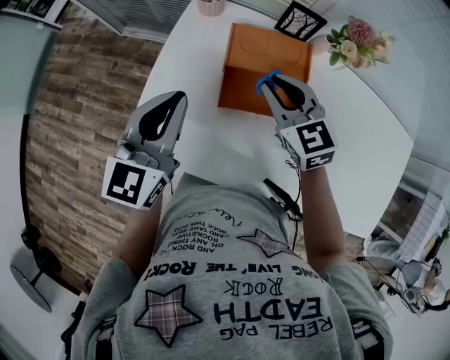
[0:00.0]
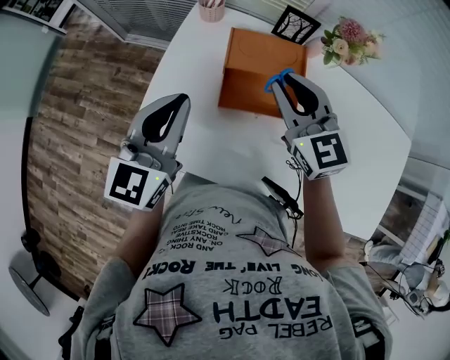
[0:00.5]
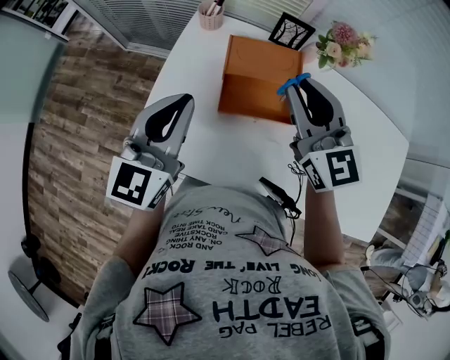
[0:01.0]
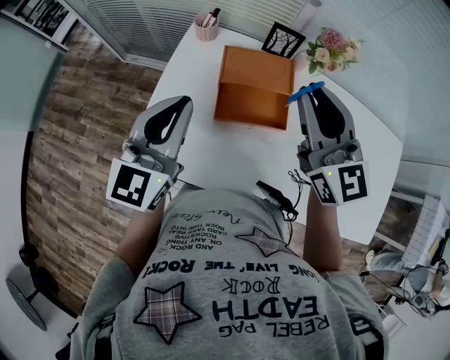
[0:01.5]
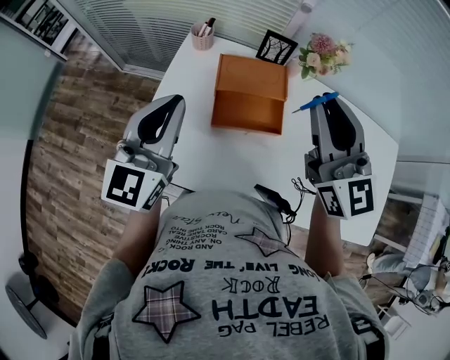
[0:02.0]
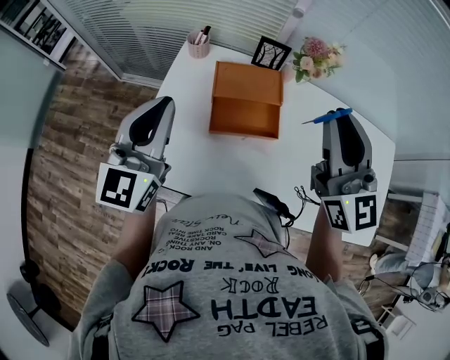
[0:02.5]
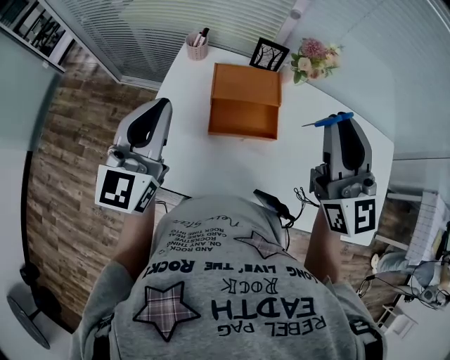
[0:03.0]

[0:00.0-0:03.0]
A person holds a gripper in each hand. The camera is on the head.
0:00.0 to 0:01.5: The left gripper goes approximately 5 cm upward. Meanwhile the right gripper is displaced upward by about 20 cm, and turns by about 30 degrees.
0:01.5 to 0:03.0: The right gripper moves to the right and upward, approximately 10 cm.

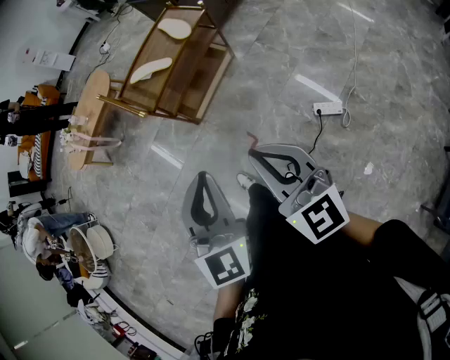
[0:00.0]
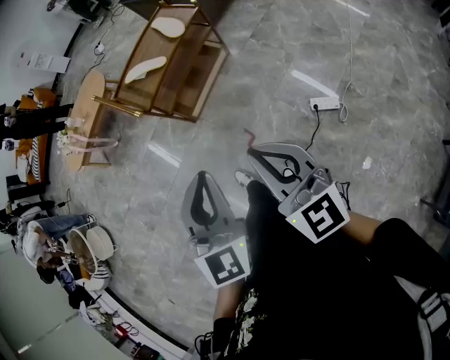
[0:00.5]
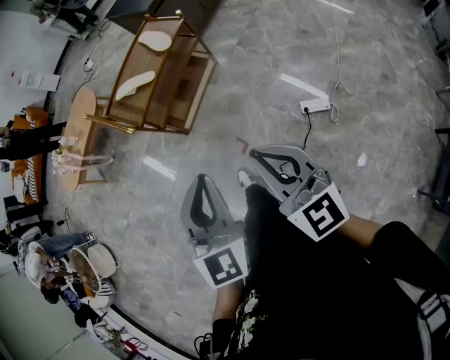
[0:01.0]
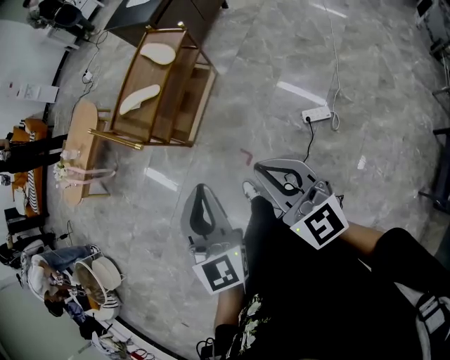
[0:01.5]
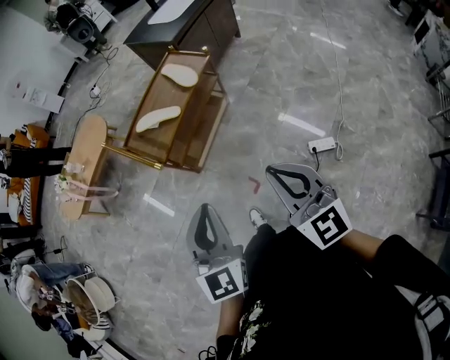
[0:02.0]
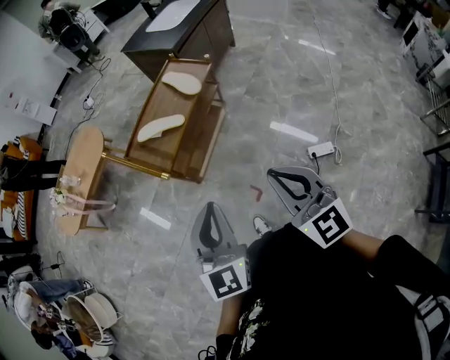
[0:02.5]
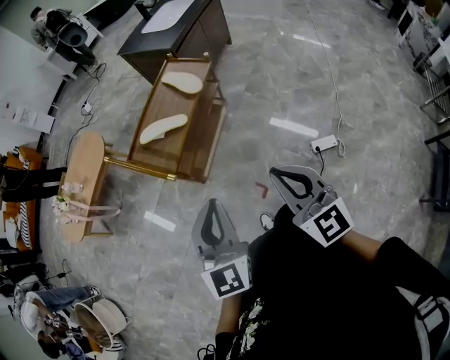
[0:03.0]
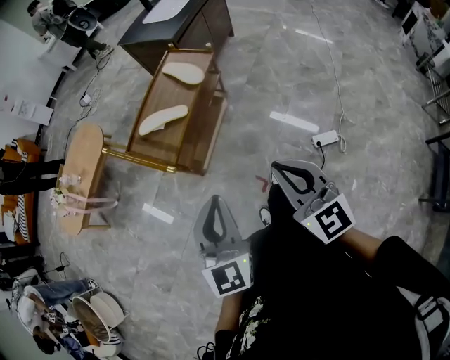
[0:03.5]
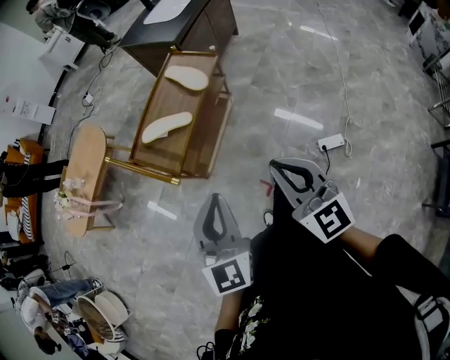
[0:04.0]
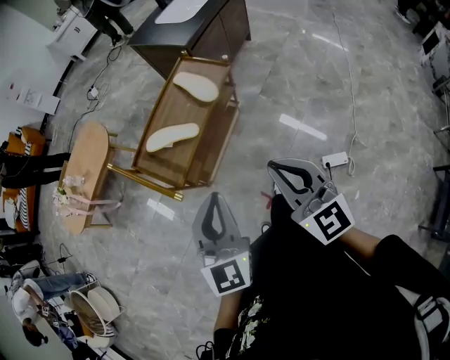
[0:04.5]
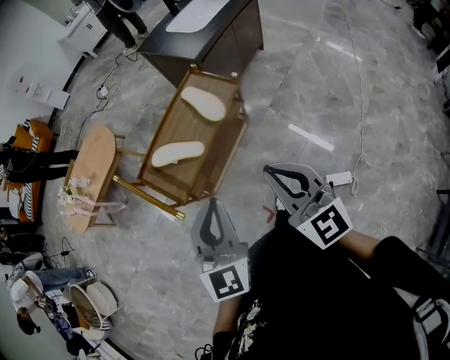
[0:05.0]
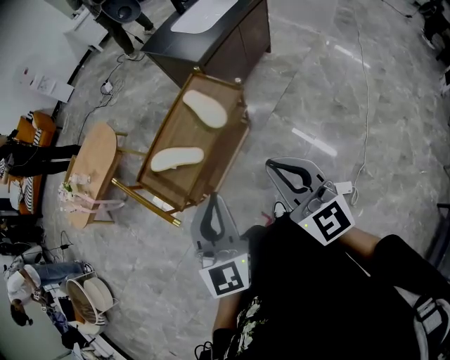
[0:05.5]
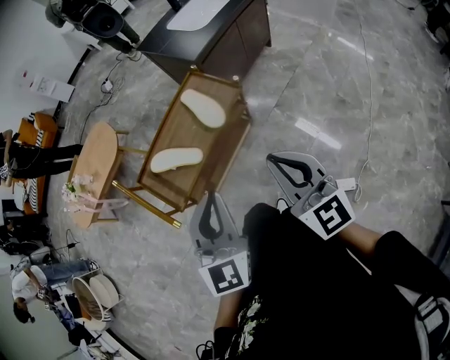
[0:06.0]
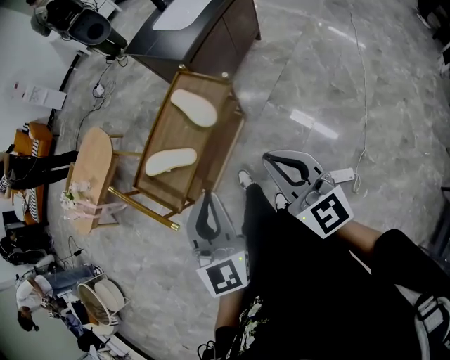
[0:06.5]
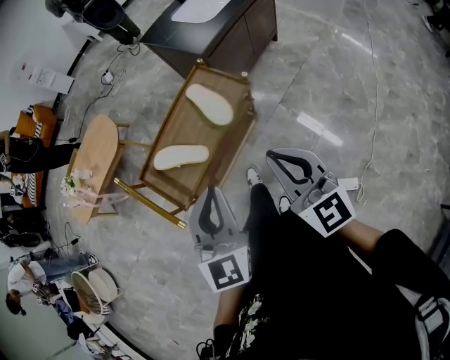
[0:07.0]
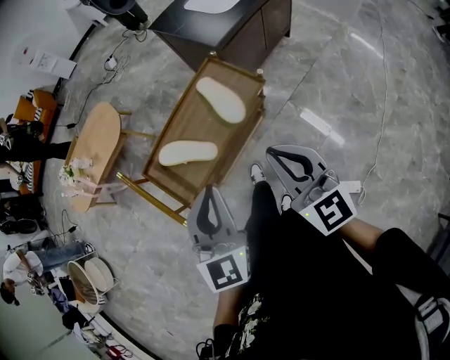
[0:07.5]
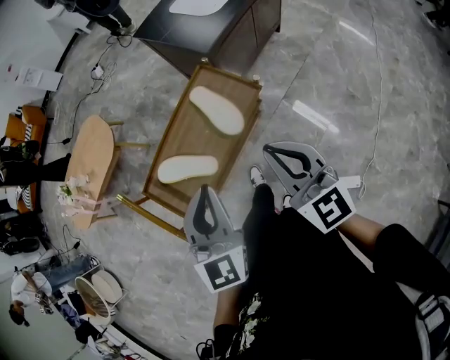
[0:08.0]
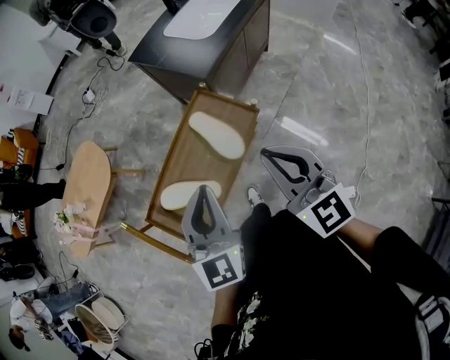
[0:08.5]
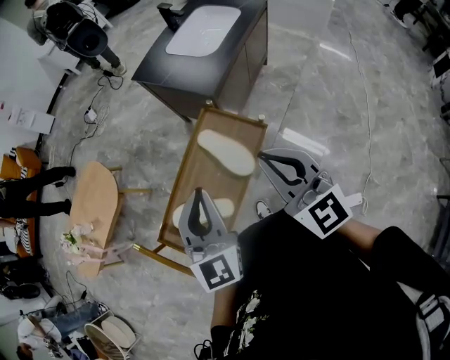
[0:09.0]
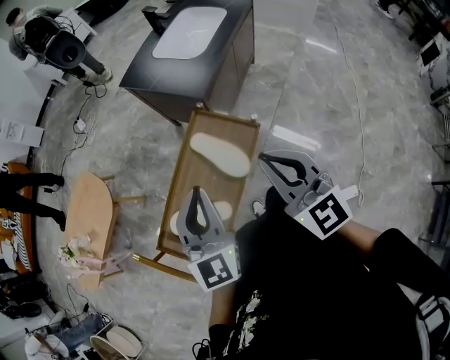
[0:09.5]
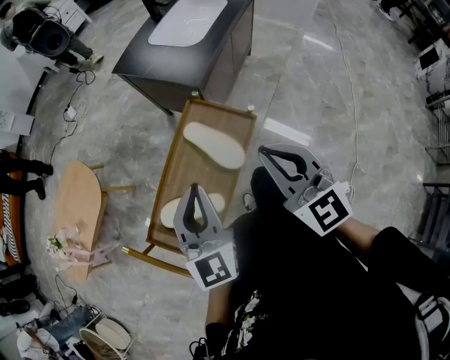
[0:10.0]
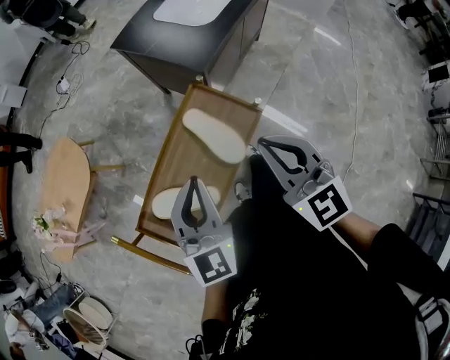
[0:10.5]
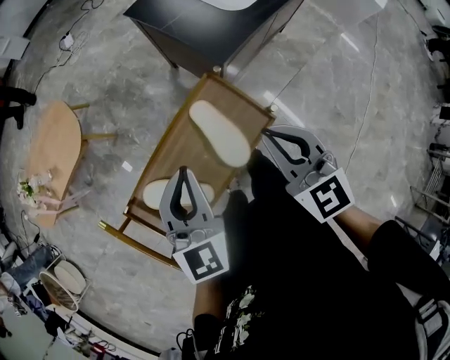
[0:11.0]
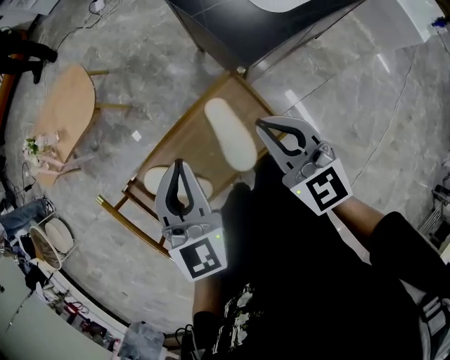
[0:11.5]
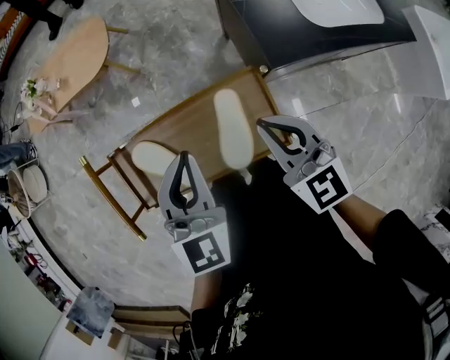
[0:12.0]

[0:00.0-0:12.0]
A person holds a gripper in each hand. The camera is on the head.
0:00.0 to 0:02.0: The left gripper is displaced forward and to the left by approximately 15 cm. The right gripper shifts roughly 10 cm forward.
0:02.0 to 0:04.0: The two grippers go some 10 cm forward.
0:04.0 to 0:06.0: The two grippers go about 25 cm forward and to the right.
0:06.0 to 0:08.0: The grippers both shift forward by some 15 cm.
0:08.0 to 0:10.0: Both grippers travel together forward, some 10 cm.
0:10.0 to 0:12.0: The left gripper moves approximately 10 cm, and rotates approximately 40 degrees; the right gripper changes place by about 20 cm, and changes its angle by about 50 degrees.

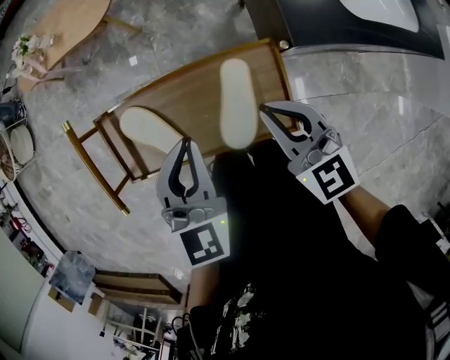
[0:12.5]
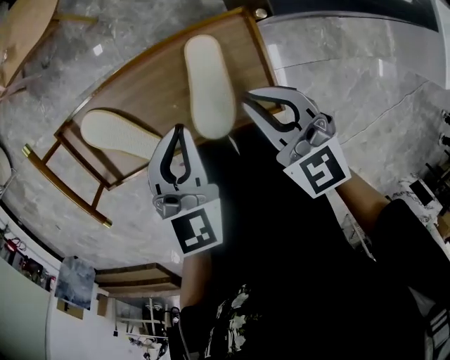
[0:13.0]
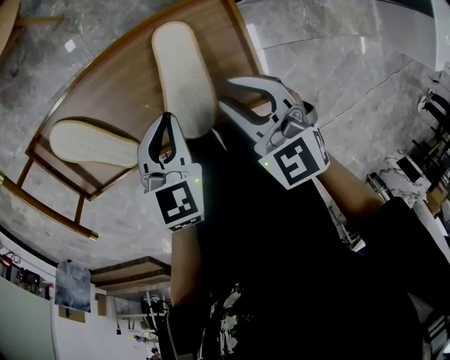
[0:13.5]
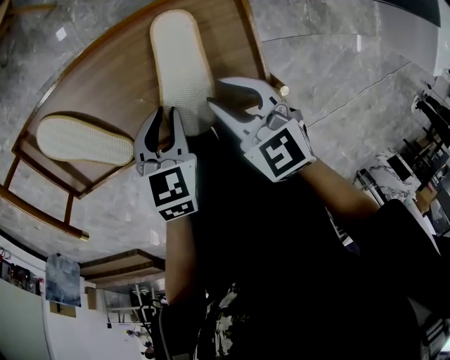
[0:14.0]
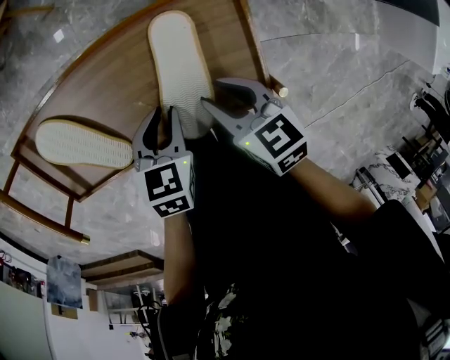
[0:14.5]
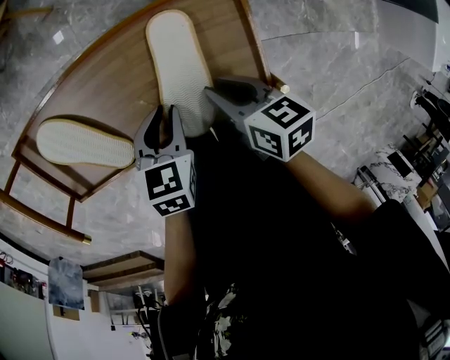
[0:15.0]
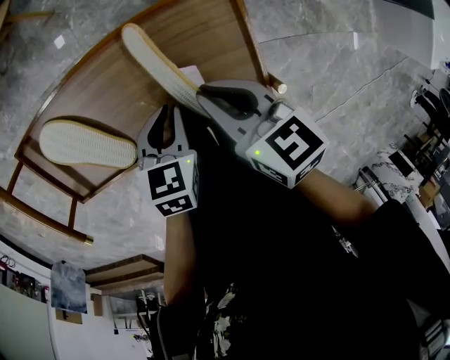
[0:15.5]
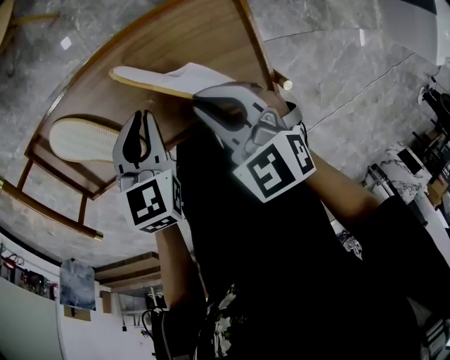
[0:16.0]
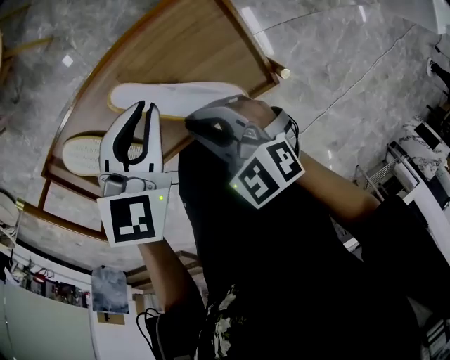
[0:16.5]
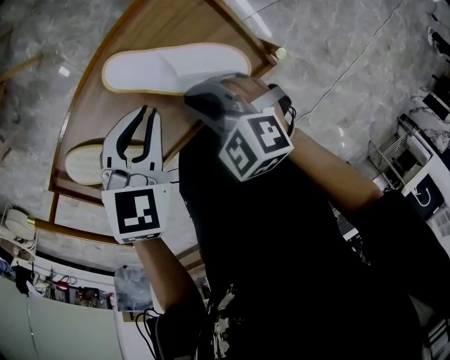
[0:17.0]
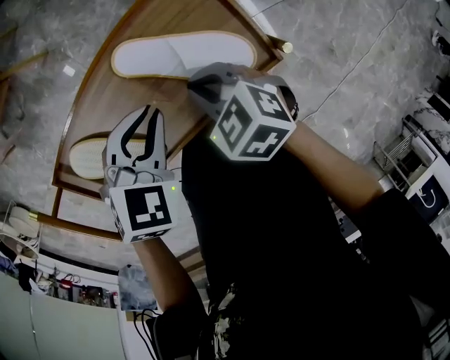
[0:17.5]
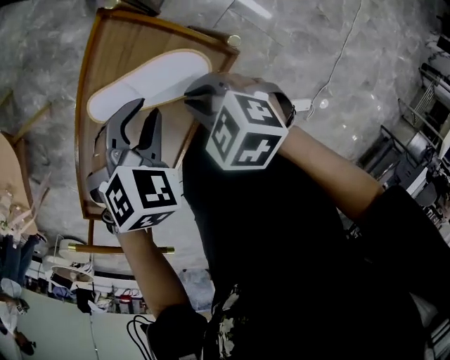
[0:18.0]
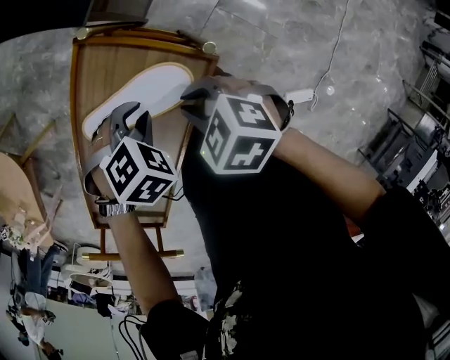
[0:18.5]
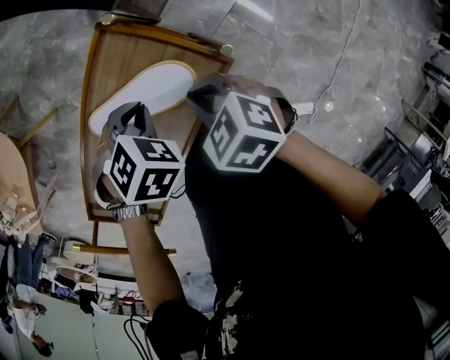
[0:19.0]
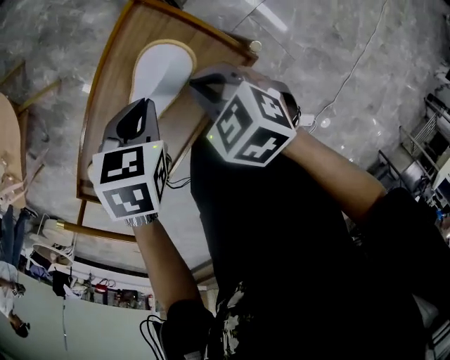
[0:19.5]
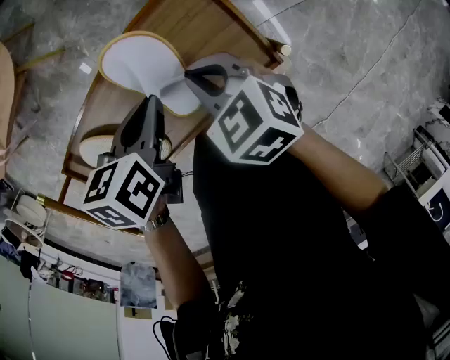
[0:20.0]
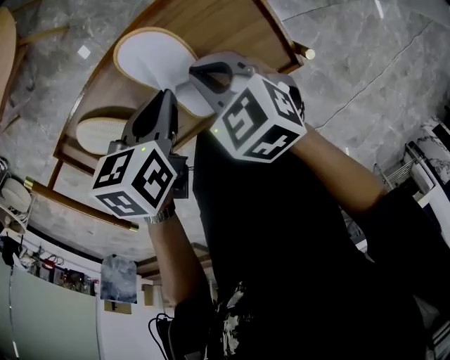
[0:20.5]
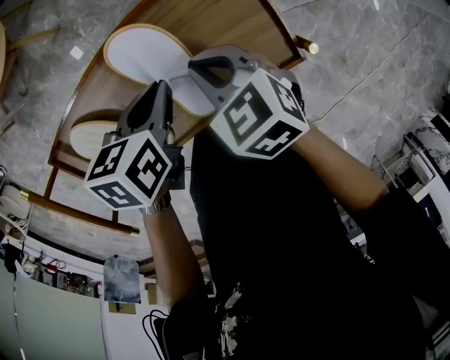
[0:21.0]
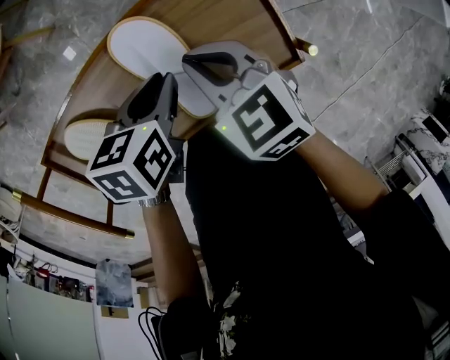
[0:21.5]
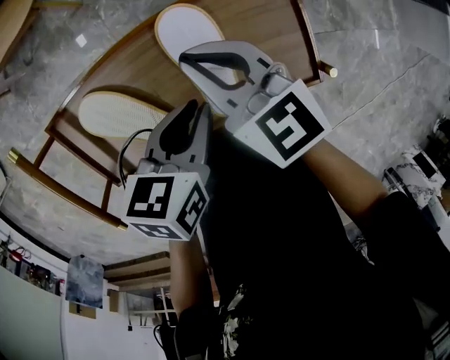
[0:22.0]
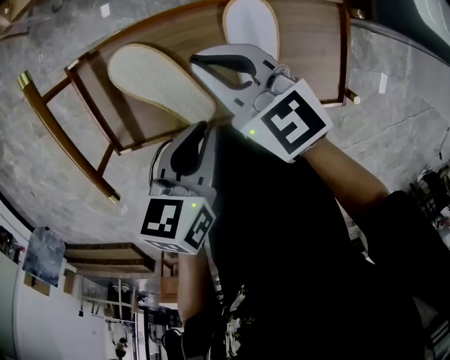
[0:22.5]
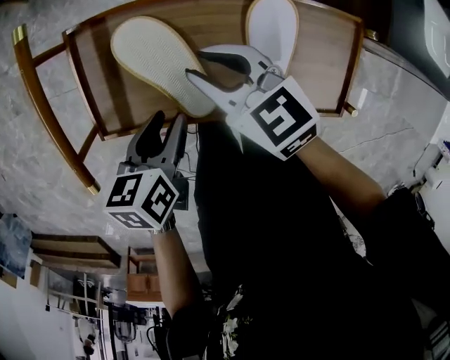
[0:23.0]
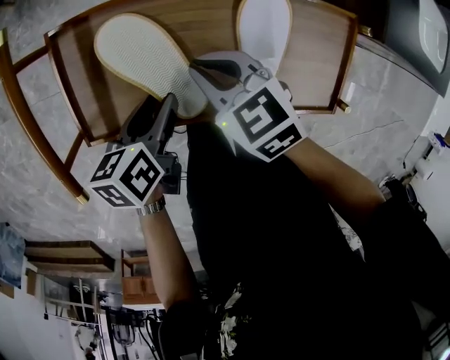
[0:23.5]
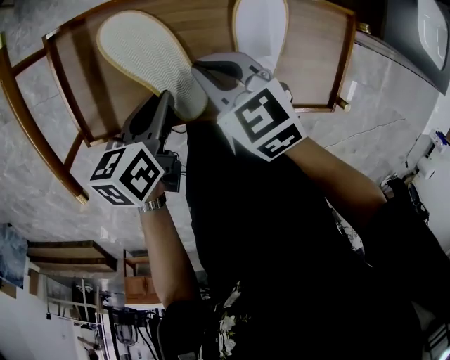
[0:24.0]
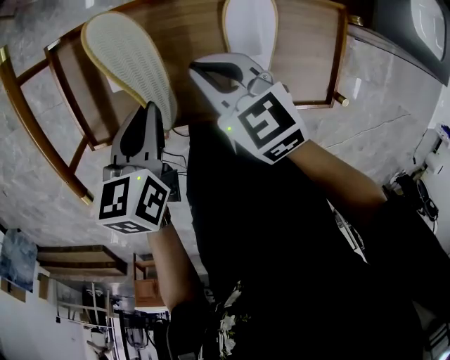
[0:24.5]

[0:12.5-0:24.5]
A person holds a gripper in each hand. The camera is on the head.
0:12.5 to 0:14.5: The two grippers go about 20 cm downward. The left gripper rotates approximately 40 degrees. The right gripper rotates some 30 degrees, and opens.
0:14.5 to 0:16.5: The left gripper shifts roughly 15 cm upward and forward, and rotates approximately 30 degrees; the right gripper goes roughly 10 cm to the left and upward, turns by roughly 30 degrees, and closes.
0:16.5 to 0:18.5: The right gripper changes place by some 10 cm, and swivels about 40 degrees. Meanwhile the left gripper goes approximately 10 cm downward, and rotates around the line of its fingers by about 60 degrees, clockwise from behind.
0:18.5 to 0:20.5: The right gripper ends up some 10 cm from where it was, and turns by approximately 20 degrees, while the left gripper moves roughly 10 cm, and twists some 100 degrees counterclockwise, seen from behind.
0:20.5 to 0:22.5: The left gripper is displaced backward and to the left by roughly 10 cm, and changes its angle by some 20 degrees, while the right gripper moves to the left, about 15 cm, and rotates roughly 30 degrees.
0:22.5 to 0:24.5: The left gripper moves to the left and downward, about 10 cm, and opens, then closes again, while the right gripper heads downward, covering approximately 5 cm, and opens, then closes again.
